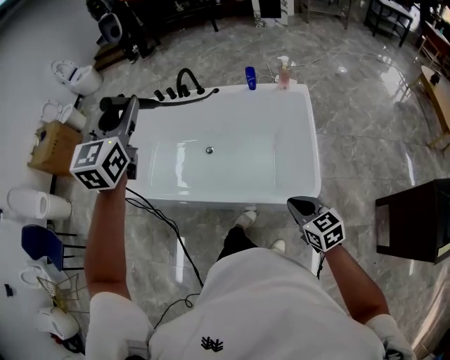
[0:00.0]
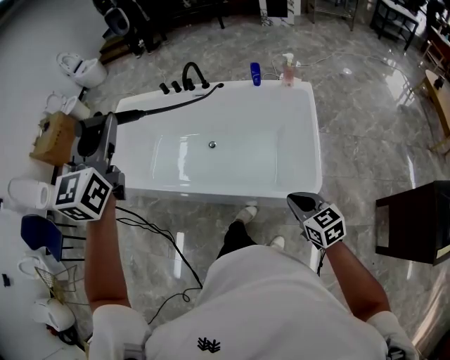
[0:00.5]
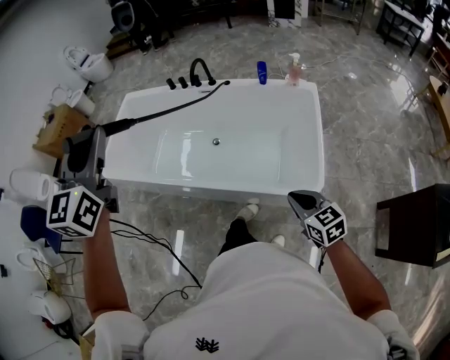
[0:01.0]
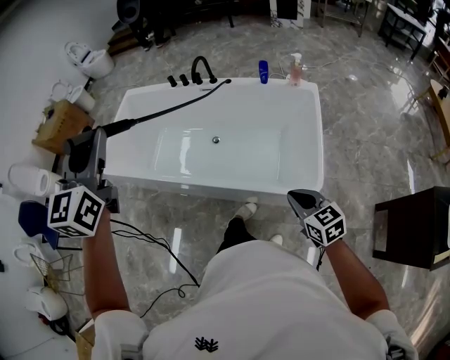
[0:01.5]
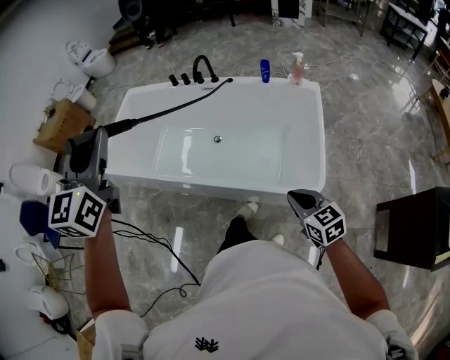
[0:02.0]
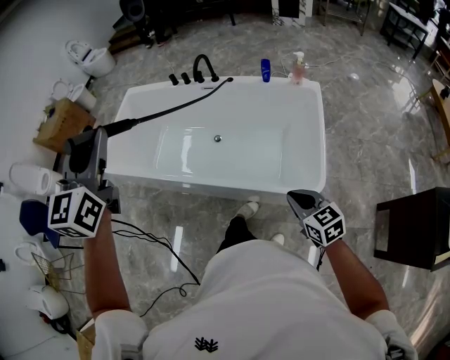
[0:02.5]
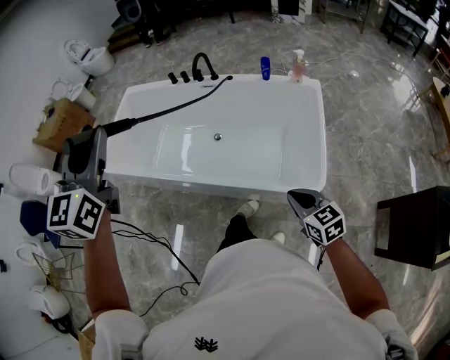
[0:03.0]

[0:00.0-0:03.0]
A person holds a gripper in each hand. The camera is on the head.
0:00.0 to 0:01.5: The left gripper goes roughly 20 cm backward and to the left.
0:01.5 to 0:03.0: The two grippers keep their place.

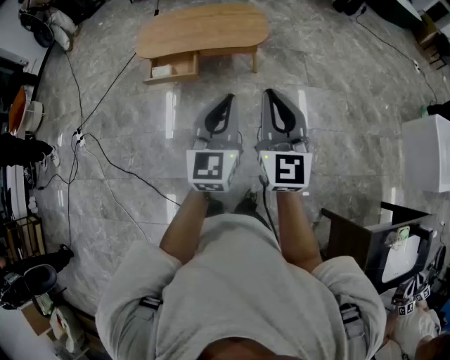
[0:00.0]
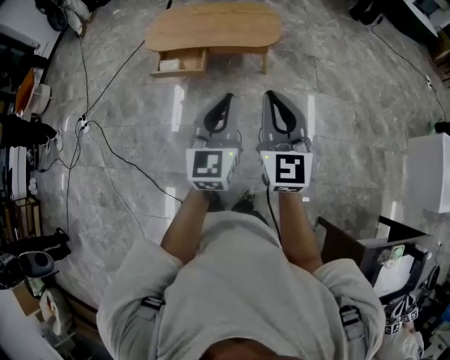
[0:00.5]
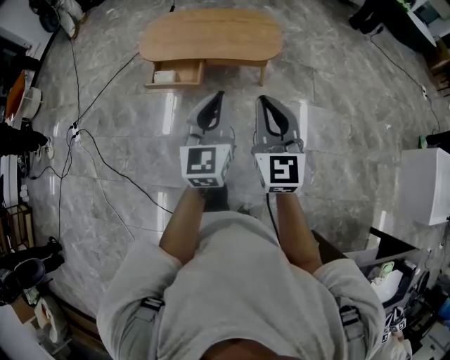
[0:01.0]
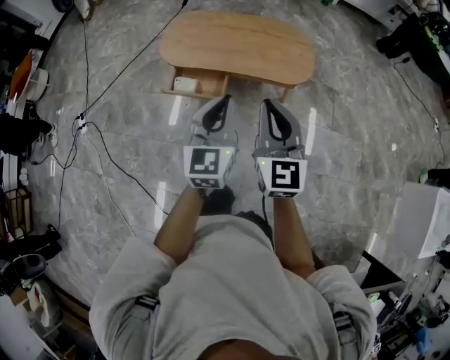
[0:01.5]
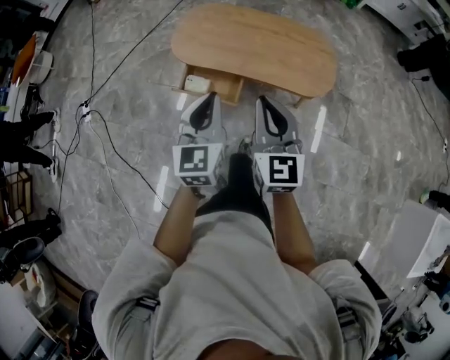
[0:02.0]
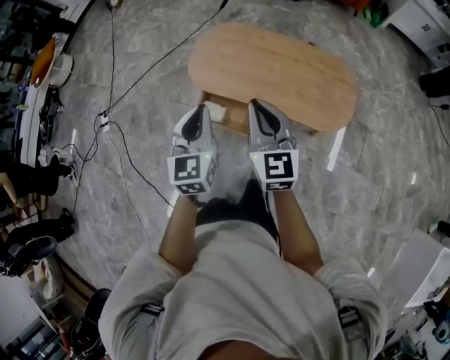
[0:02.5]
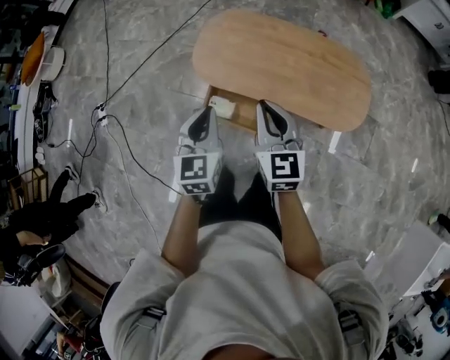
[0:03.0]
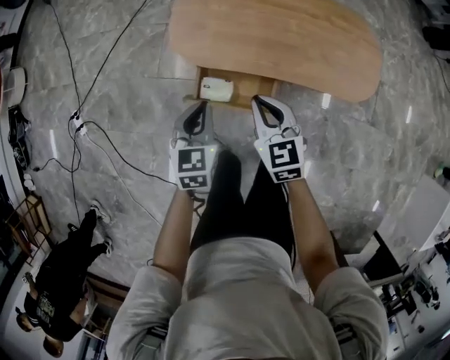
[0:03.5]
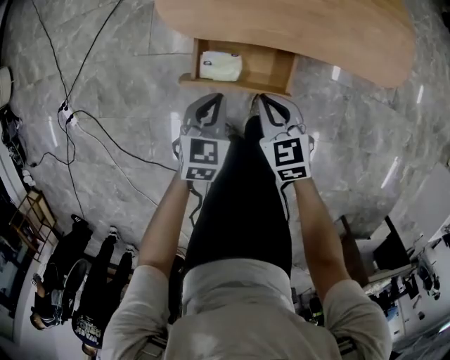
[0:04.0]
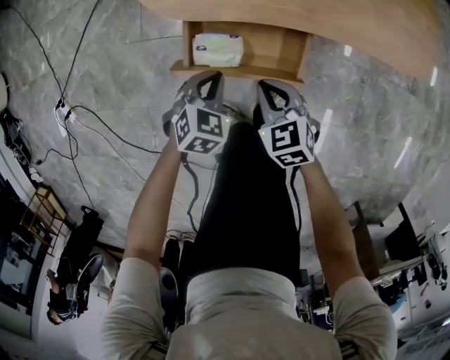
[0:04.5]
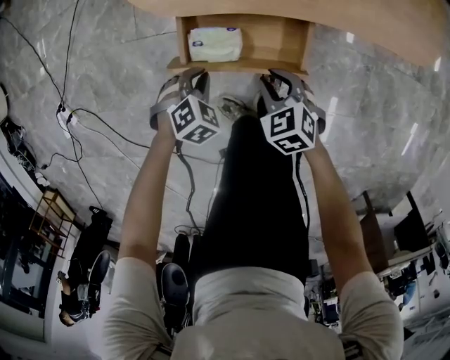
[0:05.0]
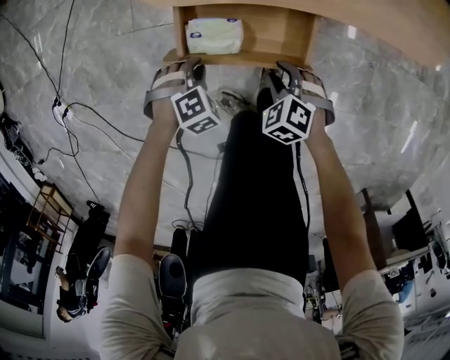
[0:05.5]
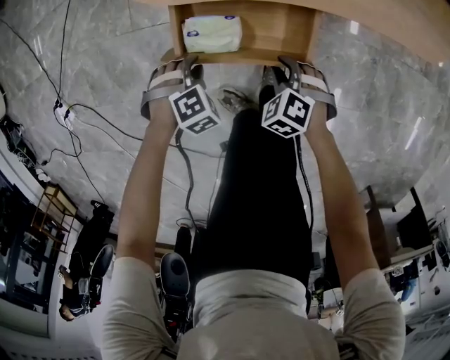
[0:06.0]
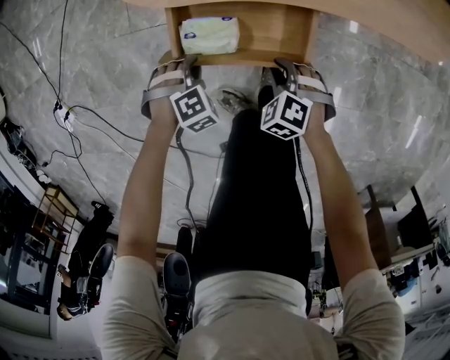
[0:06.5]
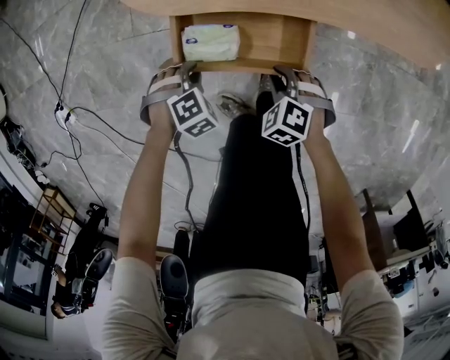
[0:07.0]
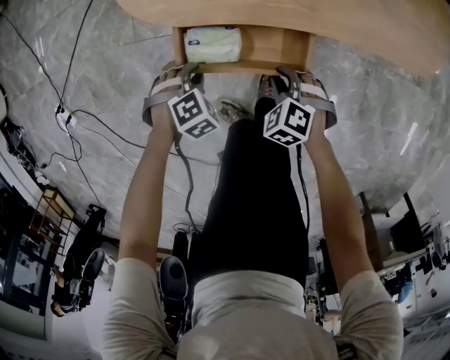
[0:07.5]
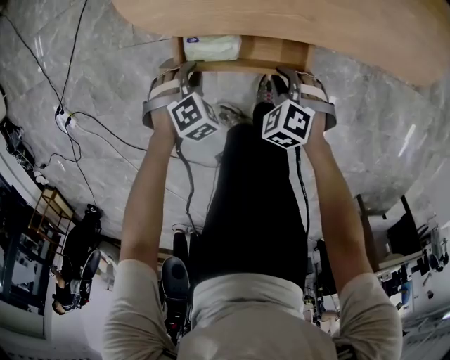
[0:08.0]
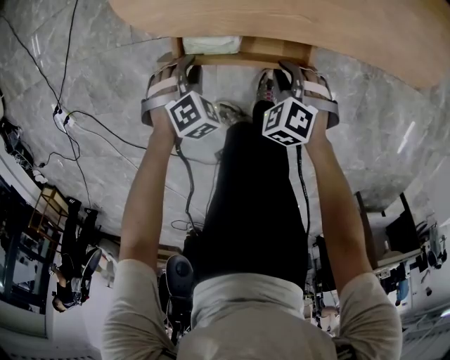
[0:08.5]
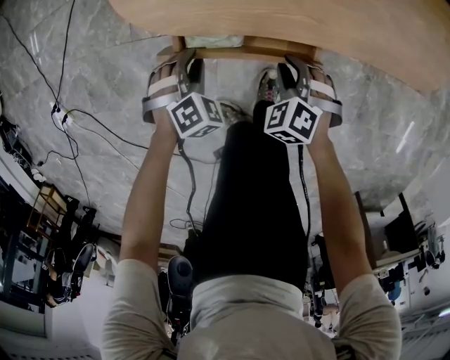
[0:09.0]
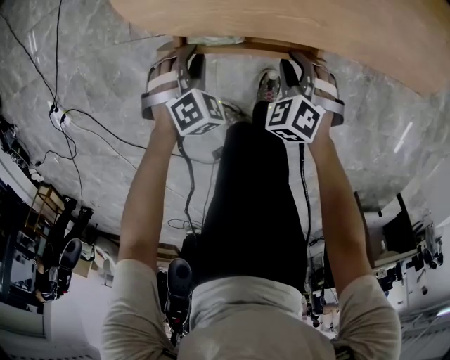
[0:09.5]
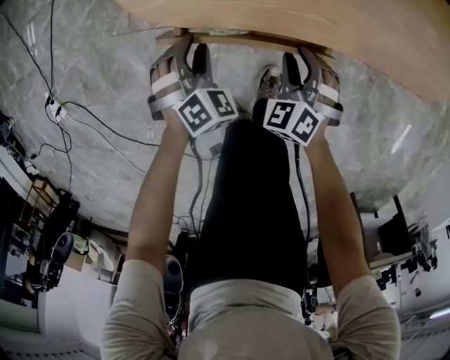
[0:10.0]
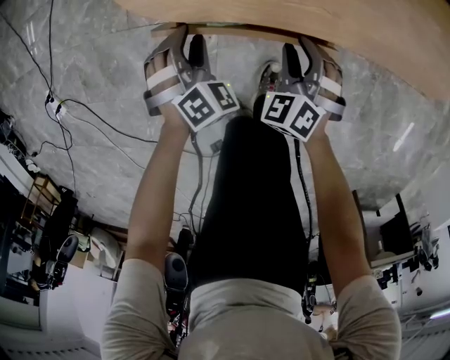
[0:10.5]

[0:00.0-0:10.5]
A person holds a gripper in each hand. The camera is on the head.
0:00.0 to 0:02.0: Both grippers are carried forward and to the left, about 50 cm. The right gripper swivels roughly 20 degrees. Meanwhile the left gripper turns by some 20 degrees.
0:02.0 to 0:04.0: Both grippers travel together downward and forward, about 40 cm. The right gripper tilts its fingers some 40 degrees downward, while the left gripper tips its fingers downward by some 30 degrees.
0:04.0 to 0:06.5: The grippers both shift downward by some 20 cm. The right gripper rotates about 40 degrees, and opens its fingers. Meanwhile the left gripper twists some 60 degrees clockwise, seen from behind, and opens.
0:06.5 to 0:08.5: The right gripper shifts by approximately 10 cm. The left gripper changes place by some 10 cm.
0:08.5 to 0:10.5: Both grippers move forward, approximately 5 cm. The right gripper changes its angle by approximately 20 degrees, while the left gripper rotates some 20 degrees.

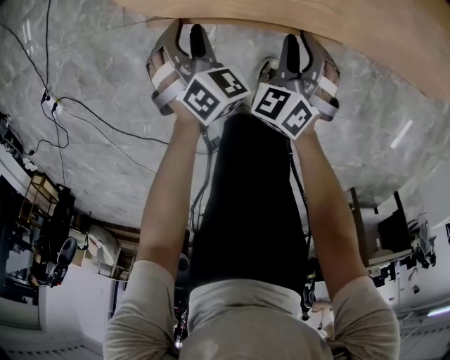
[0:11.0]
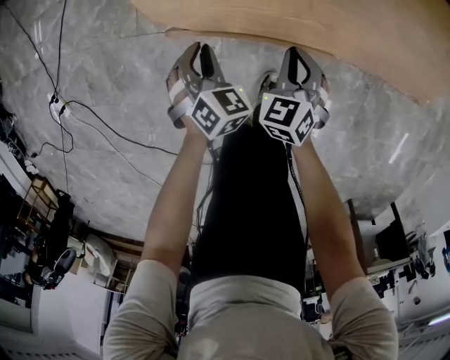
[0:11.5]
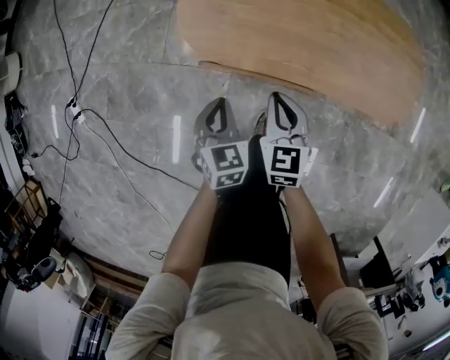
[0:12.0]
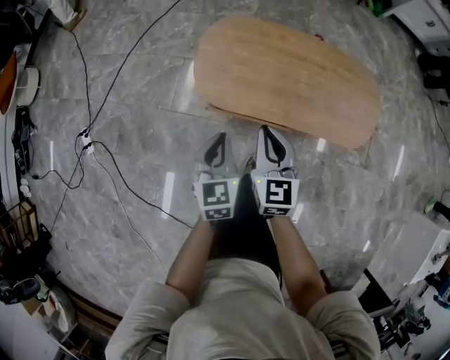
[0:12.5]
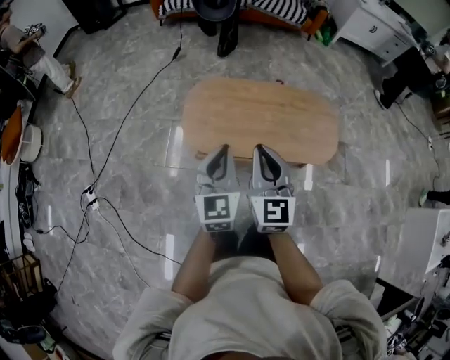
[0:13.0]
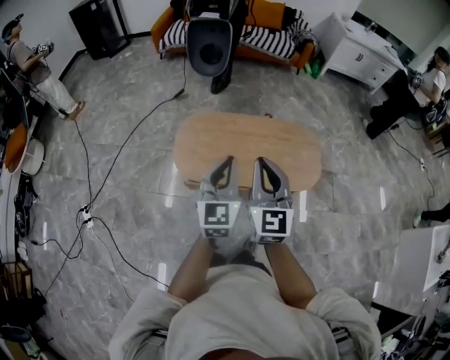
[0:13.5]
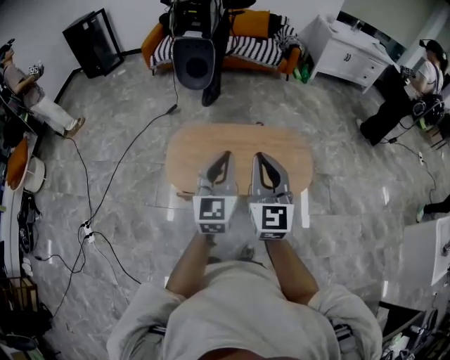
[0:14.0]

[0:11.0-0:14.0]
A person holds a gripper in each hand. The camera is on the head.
0:11.0 to 0:12.5: The two grippers go about 40 cm upward. The right gripper rotates roughly 50 degrees, and closes up; the left gripper rolls counterclockwise, seen from behind, by some 50 degrees, and closes up.
0:12.5 to 0:14.0: Both grippers move upward and to the right, some 35 cm. The right gripper swivels about 30 degrees, while the left gripper points its fingers roughly 30 degrees further upward.

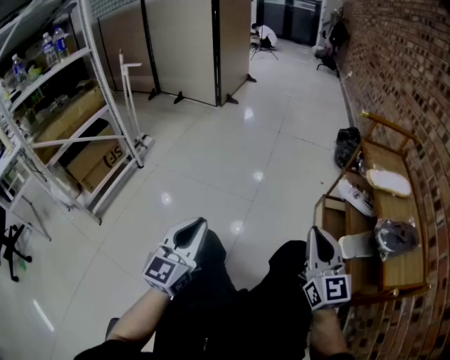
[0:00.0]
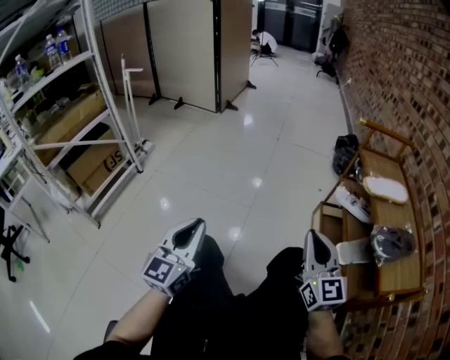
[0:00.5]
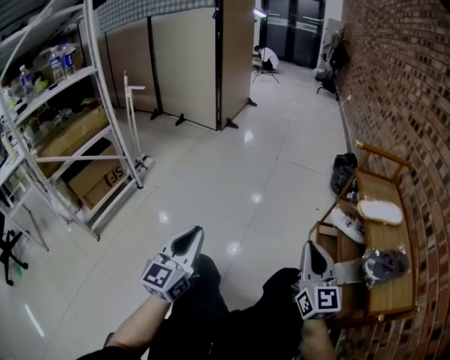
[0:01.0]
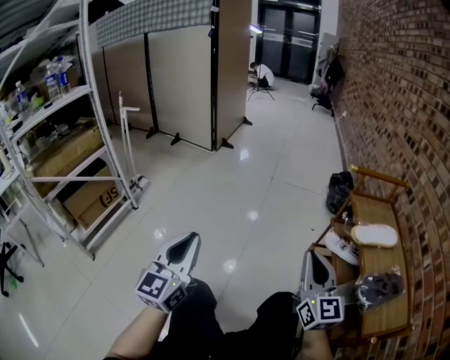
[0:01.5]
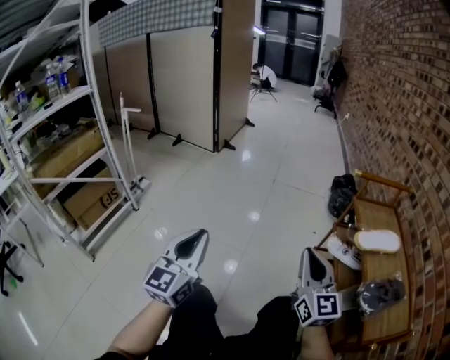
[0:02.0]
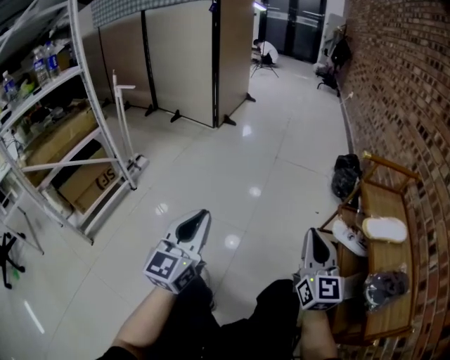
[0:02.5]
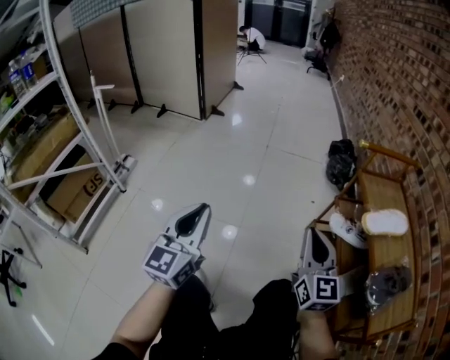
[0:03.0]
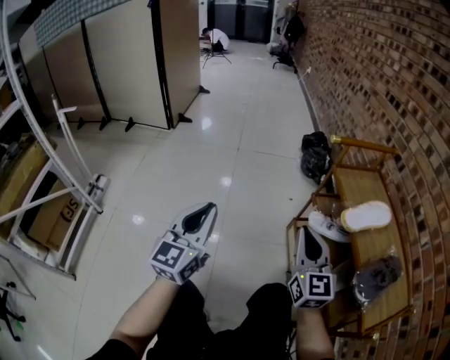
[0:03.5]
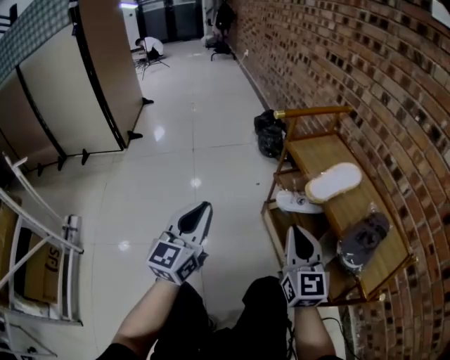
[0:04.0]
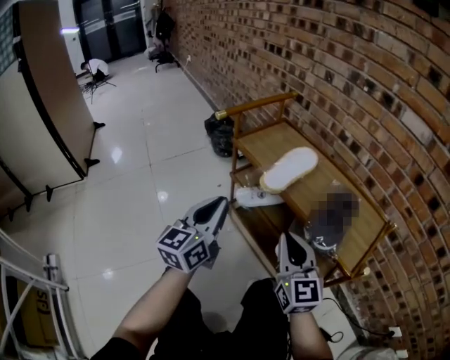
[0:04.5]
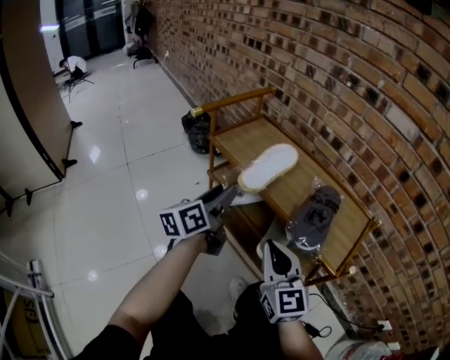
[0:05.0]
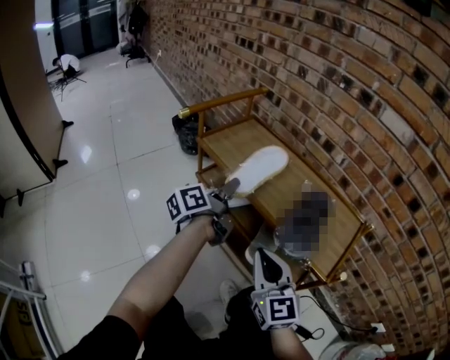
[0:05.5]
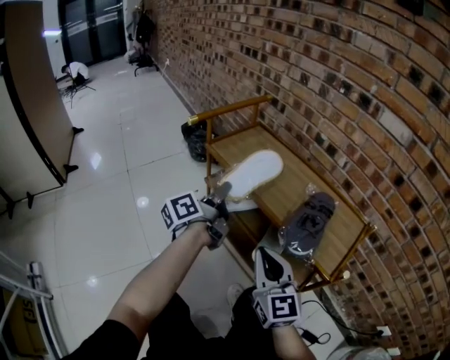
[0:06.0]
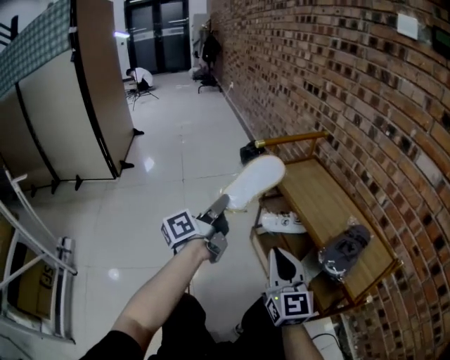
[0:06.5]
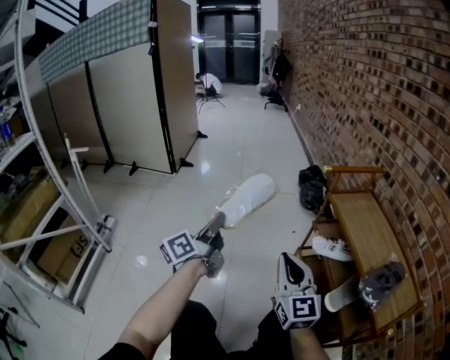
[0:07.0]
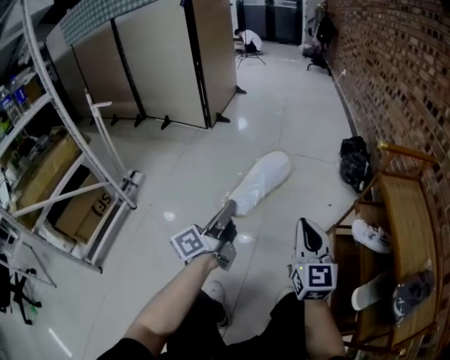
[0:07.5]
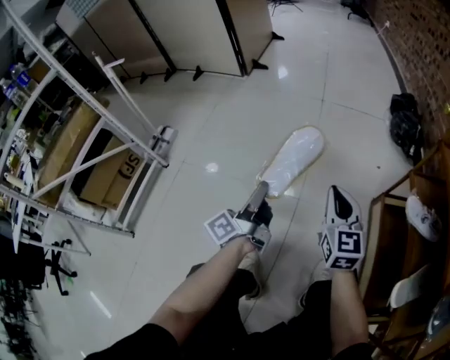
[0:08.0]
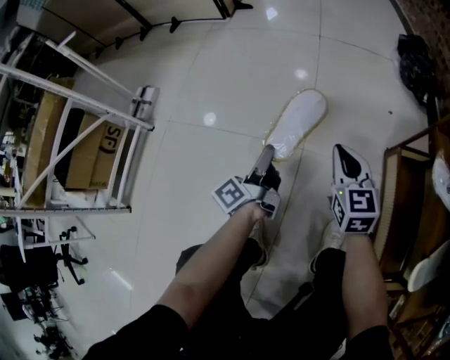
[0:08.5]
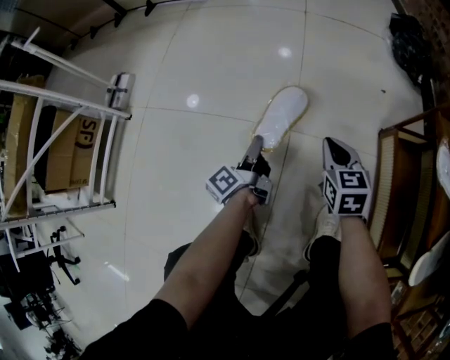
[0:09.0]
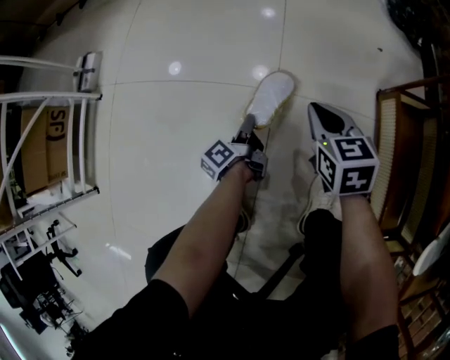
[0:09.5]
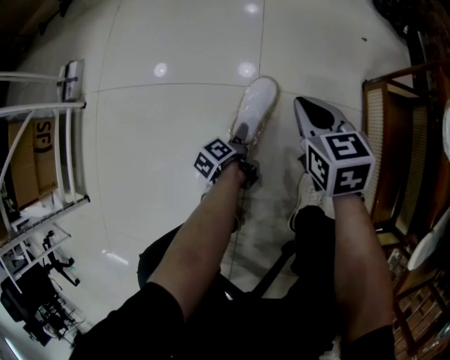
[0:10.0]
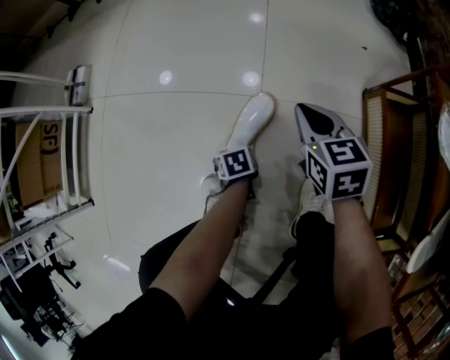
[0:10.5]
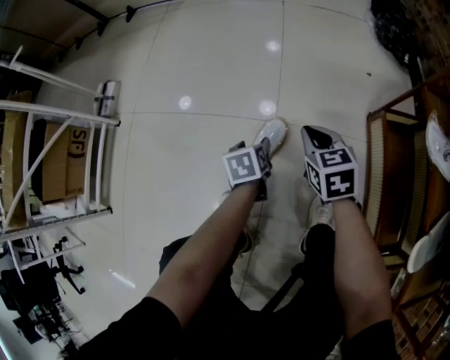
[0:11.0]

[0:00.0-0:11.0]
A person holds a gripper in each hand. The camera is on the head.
0:00.0 to 0:02.0: The two grippers go about 15 cm forward and upward.
0:02.0 to 0:03.5: The left gripper moves forward and to the right, approximately 20 cm, while the right gripper heads forward and to the right, covering about 10 cm.
0:03.5 to 0:05.5: The left gripper ends up some 40 cm from where it was, swivels about 80 degrees, and opens up. Meanwhile the right gripper shifts by approximately 20 cm, and turns by about 30 degrees.
0:05.5 to 0:07.5: The right gripper changes place by some 30 cm, and swivels approximately 40 degrees, while the left gripper goes upward and returns, roughly 10 cm each way, swivels some 60 degrees, and closes up.
0:07.5 to 0:09.0: Both grippers travel together downward, some 35 cm. The right gripper points its fingers approximately 40 degrees further downward. The left gripper changes its angle by approximately 30 degrees.
0:09.0 to 0:11.0: The left gripper goes downward and returns, about 20 cm each way, tilts its fingers approximately 50 degrees downward, and opens its fingers.
